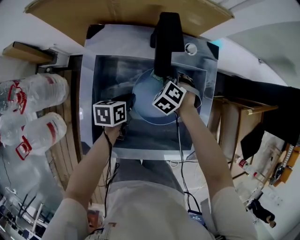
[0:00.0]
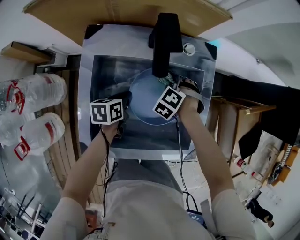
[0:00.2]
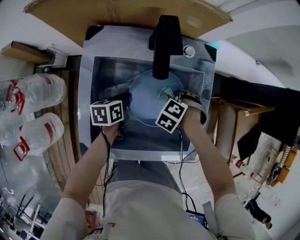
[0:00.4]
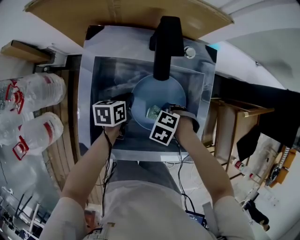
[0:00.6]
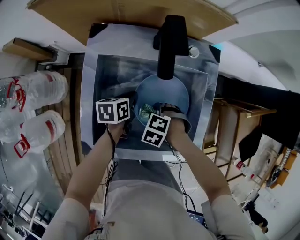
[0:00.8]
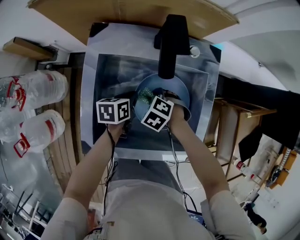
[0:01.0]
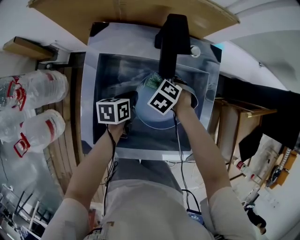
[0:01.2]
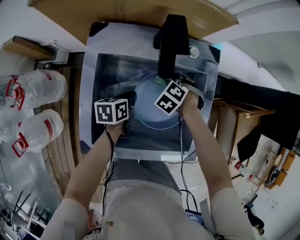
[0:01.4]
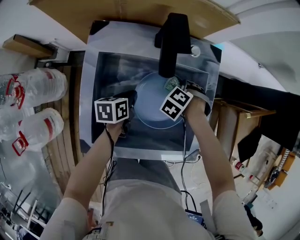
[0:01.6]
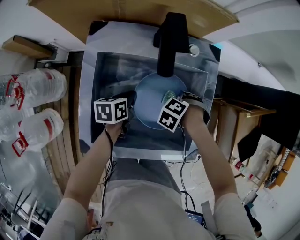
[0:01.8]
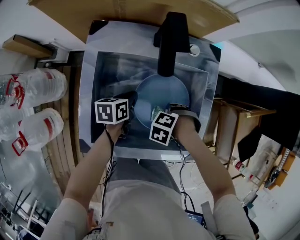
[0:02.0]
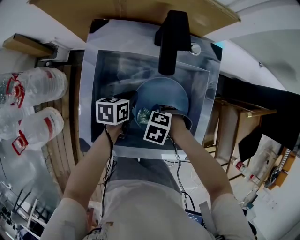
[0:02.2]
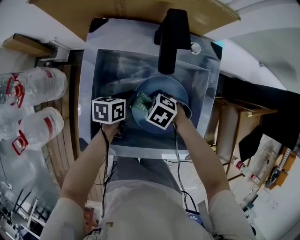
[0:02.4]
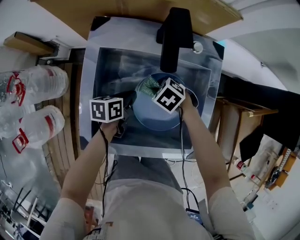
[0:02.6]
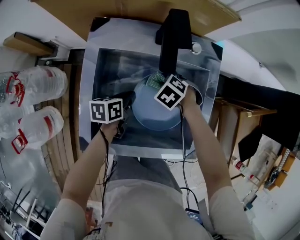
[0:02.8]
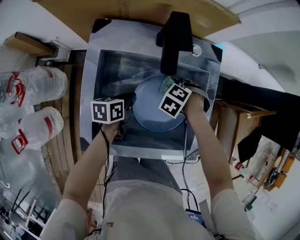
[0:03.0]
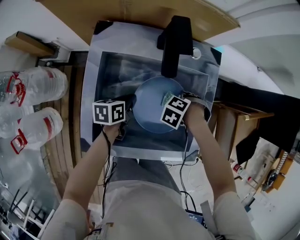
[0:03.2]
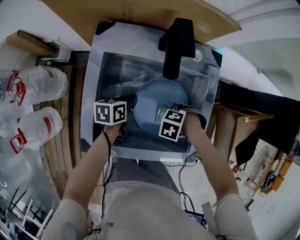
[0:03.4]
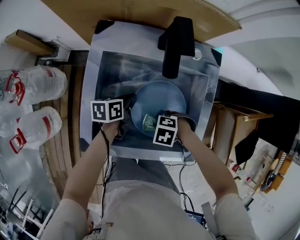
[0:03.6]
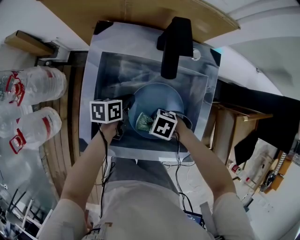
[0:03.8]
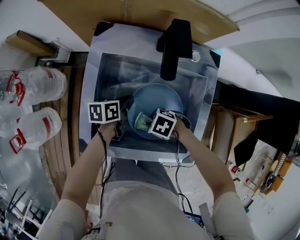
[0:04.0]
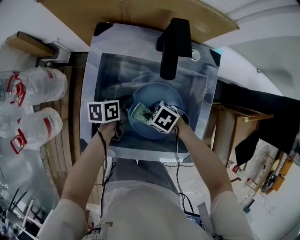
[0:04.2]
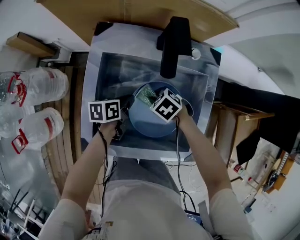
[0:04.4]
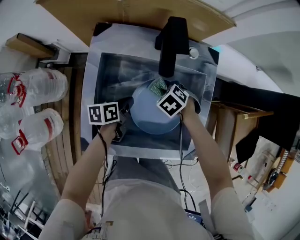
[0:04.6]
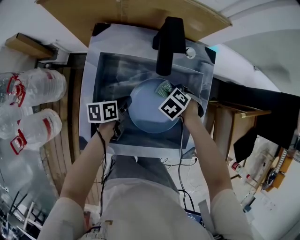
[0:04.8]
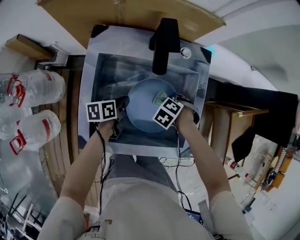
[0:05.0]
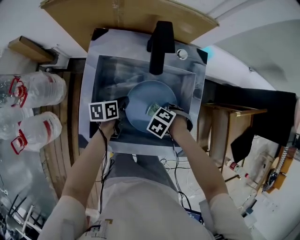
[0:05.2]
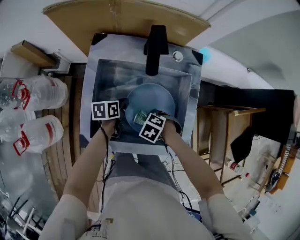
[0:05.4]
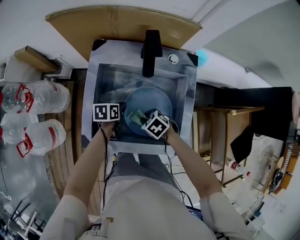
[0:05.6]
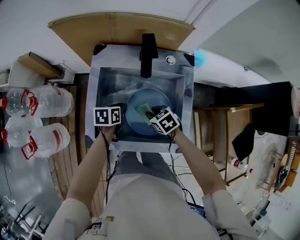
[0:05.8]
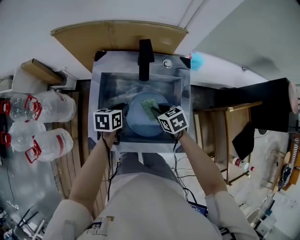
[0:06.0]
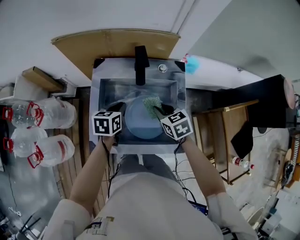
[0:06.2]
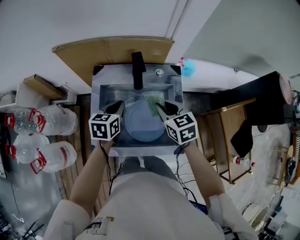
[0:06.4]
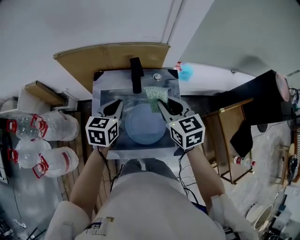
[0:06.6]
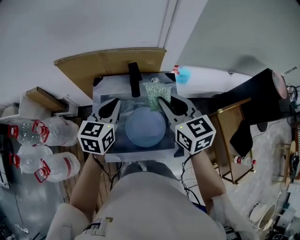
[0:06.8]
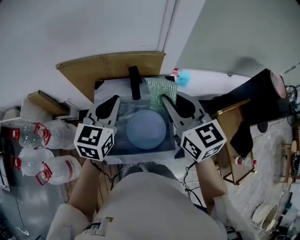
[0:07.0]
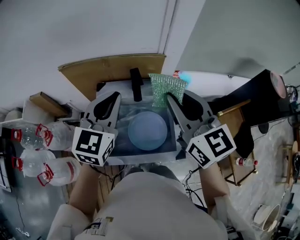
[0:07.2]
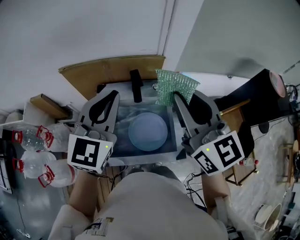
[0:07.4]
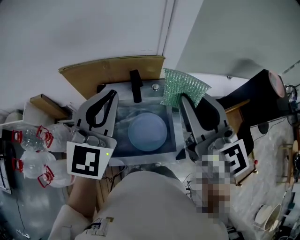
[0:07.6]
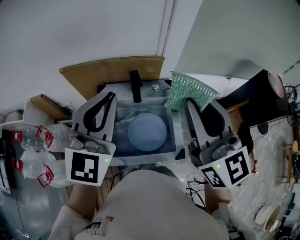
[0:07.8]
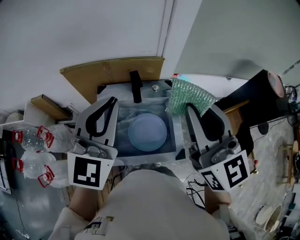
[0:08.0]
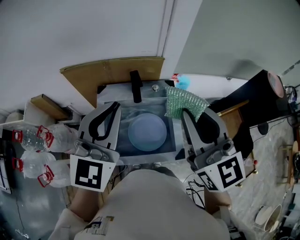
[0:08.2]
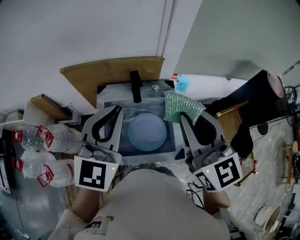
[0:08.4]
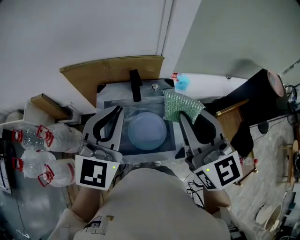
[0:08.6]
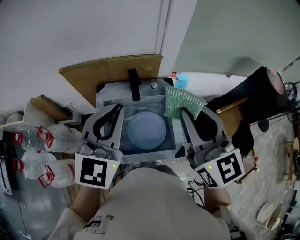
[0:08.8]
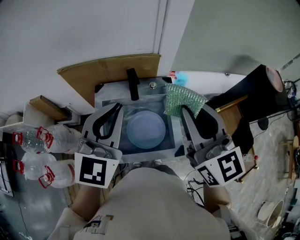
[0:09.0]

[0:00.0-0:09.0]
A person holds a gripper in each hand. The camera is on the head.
0:03.0 to 0:04.4: The right gripper changes its angle by some 30 degrees.
0:04.4 to 0:06.0: Both grippers travel together upward, approximately 10 cm. The left gripper rotates approximately 20 degrees. The right gripper changes its angle by about 40 degrees.
0:06.0 to 0:07.6: Both grippers move upward, some 50 cm. The left gripper angles its fingers upward, by some 40 degrees. Meanwhile the right gripper points its fingers about 60 degrees further upward.
0:07.6 to 0:09.0: The left gripper ends up about 5 cm from where it was.

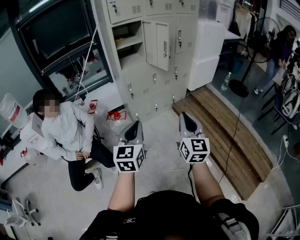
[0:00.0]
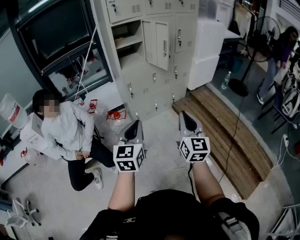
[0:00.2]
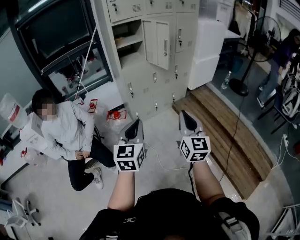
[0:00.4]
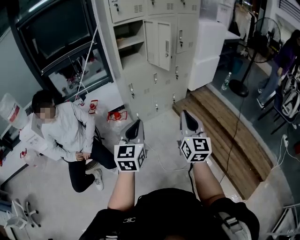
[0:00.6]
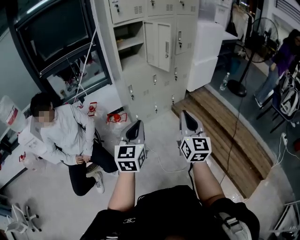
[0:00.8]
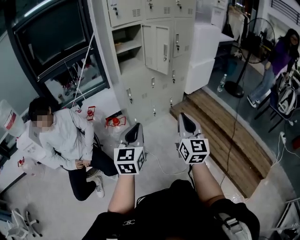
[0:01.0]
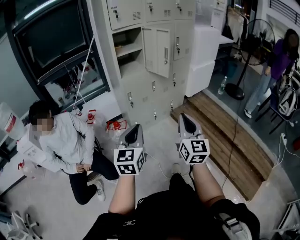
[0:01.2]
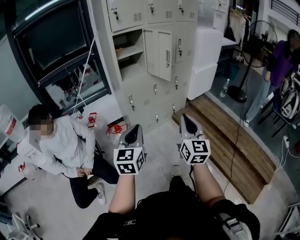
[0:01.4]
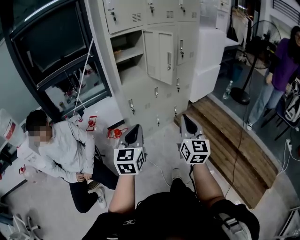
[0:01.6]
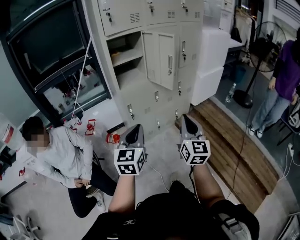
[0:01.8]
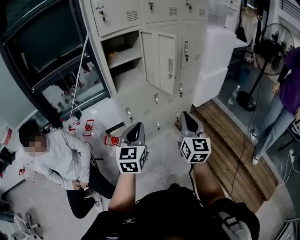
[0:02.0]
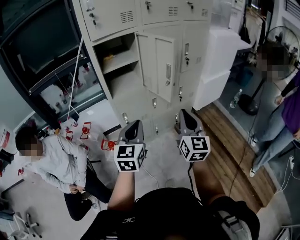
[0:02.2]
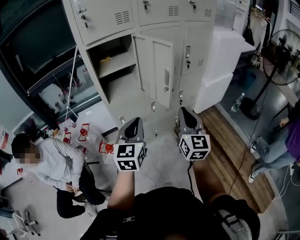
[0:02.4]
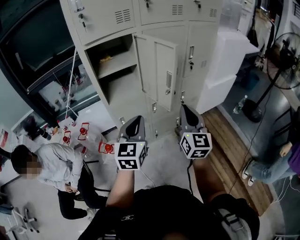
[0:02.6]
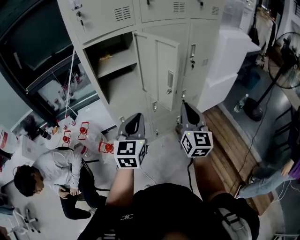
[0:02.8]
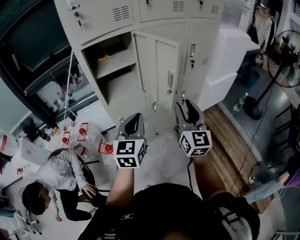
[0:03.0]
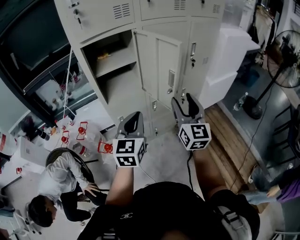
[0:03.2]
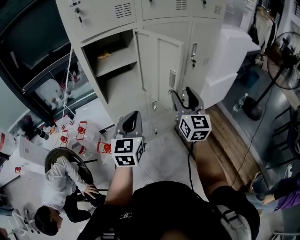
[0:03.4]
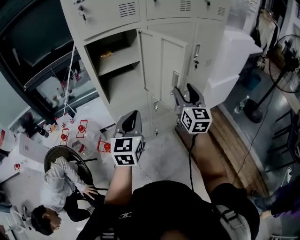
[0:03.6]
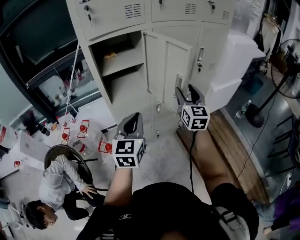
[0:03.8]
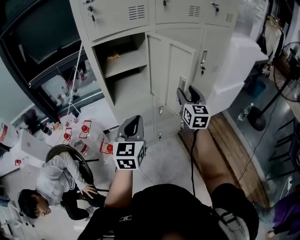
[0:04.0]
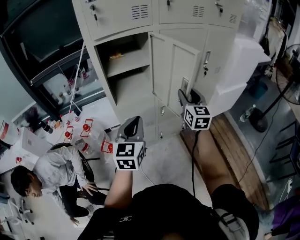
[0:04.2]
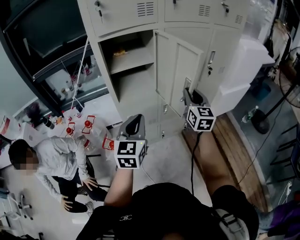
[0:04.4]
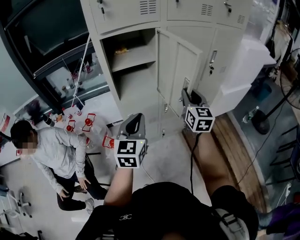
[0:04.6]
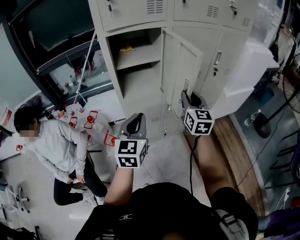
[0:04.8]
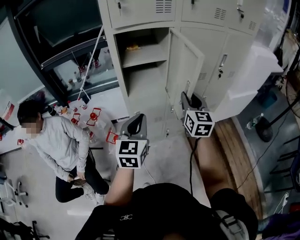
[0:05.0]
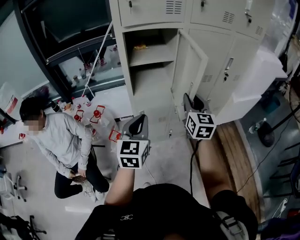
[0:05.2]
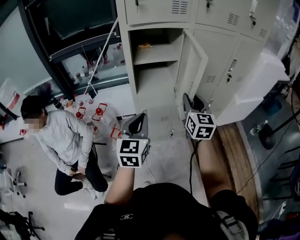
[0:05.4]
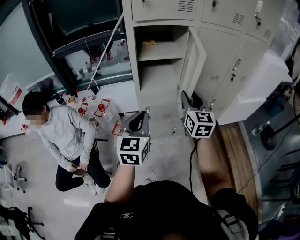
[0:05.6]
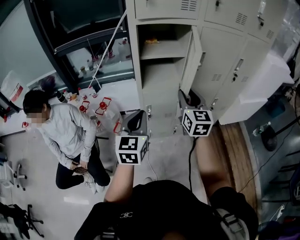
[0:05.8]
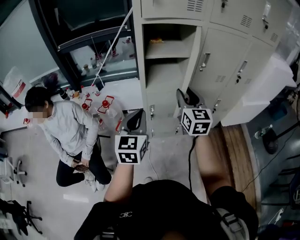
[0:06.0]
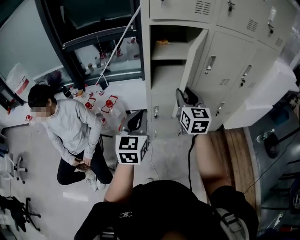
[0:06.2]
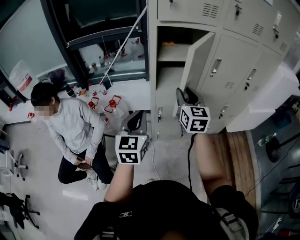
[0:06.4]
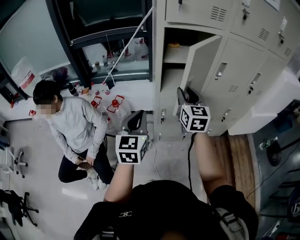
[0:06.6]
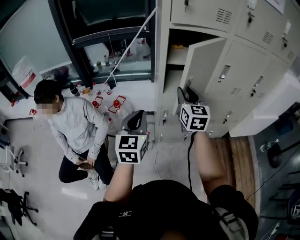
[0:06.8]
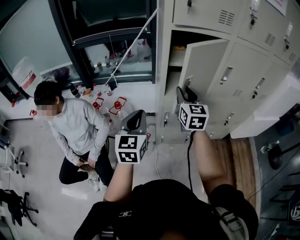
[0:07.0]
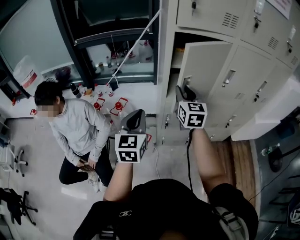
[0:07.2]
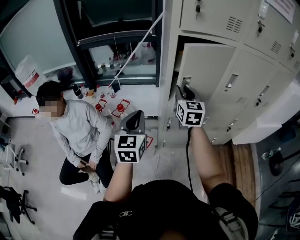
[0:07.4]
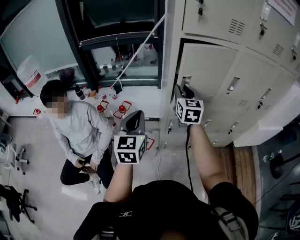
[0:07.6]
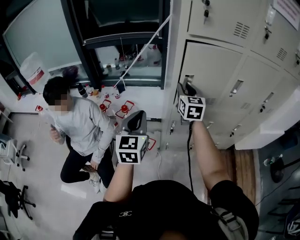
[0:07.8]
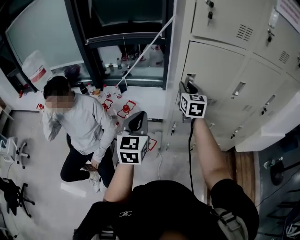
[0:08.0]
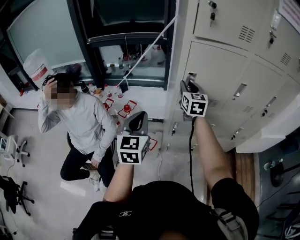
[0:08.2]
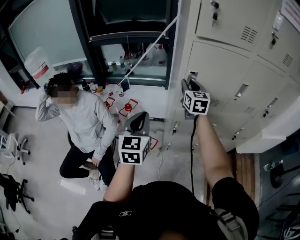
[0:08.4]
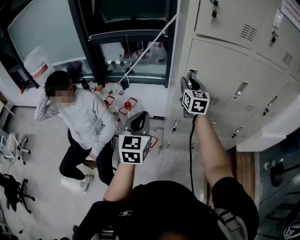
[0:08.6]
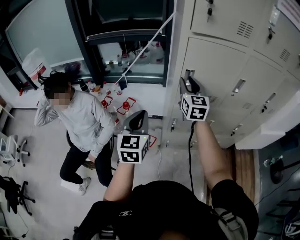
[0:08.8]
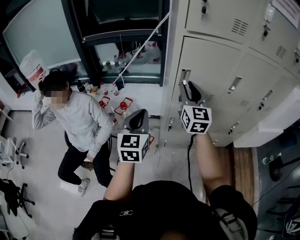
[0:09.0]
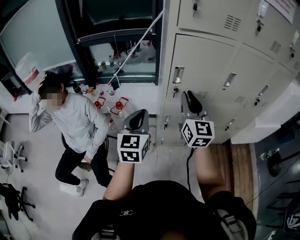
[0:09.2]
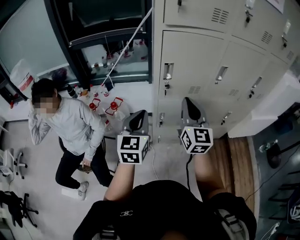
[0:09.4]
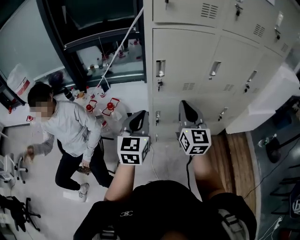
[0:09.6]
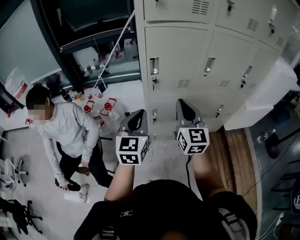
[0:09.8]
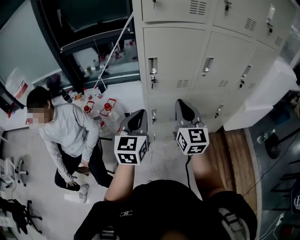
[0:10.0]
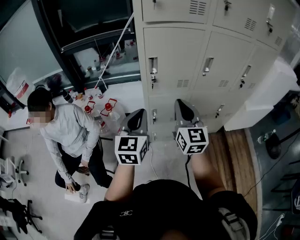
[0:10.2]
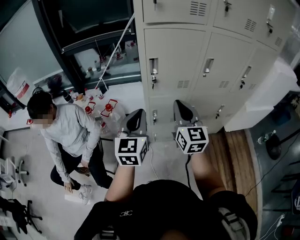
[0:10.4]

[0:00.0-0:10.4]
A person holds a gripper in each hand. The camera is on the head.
0:00.0 to 0:01.4: The grippers both shift forward by about 5 cm.
0:01.4 to 0:03.0: The two grippers travel together, forward, roughly 40 cm. The right gripper opens its fingers.
0:03.0 to 0:04.4: The left gripper moves to the left, roughly 5 cm; the right gripper heads forward, covering about 15 cm, and opens, then closes once more.
0:04.4 to 0:06.0: The right gripper shifts about 20 cm to the left. Meanwhile the left gripper is displaced to the left by some 10 cm.
0:06.0 to 0:07.4: Both grippers travel together to the left and forward, about 15 cm.
0:07.4 to 0:09.0: The right gripper reaches about 5 cm forward, then returns.
0:09.0 to 0:10.4: The left gripper heads to the right, covering approximately 10 cm; the right gripper is displaced backward and to the right by roughly 15 cm, and closes its fingers.

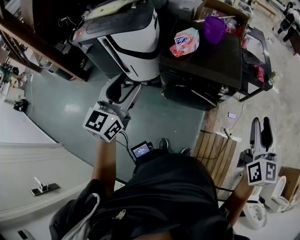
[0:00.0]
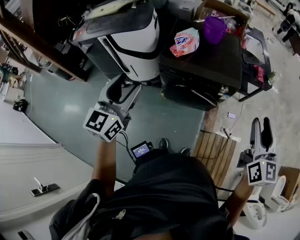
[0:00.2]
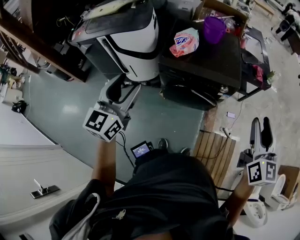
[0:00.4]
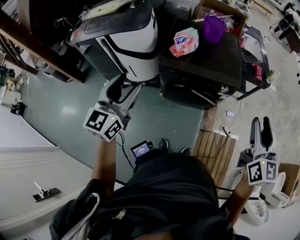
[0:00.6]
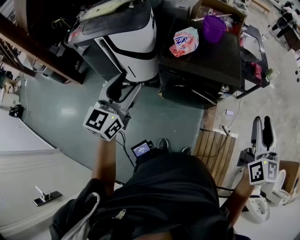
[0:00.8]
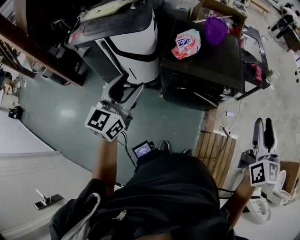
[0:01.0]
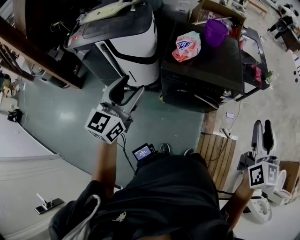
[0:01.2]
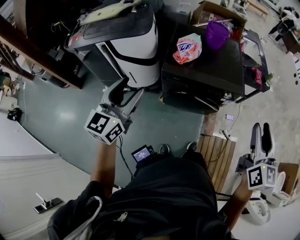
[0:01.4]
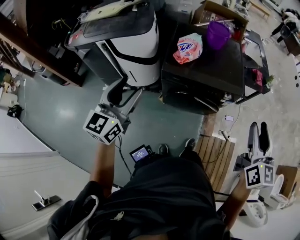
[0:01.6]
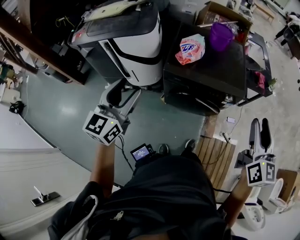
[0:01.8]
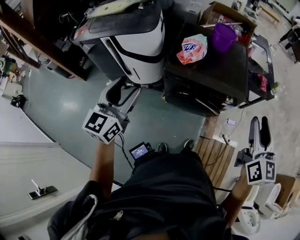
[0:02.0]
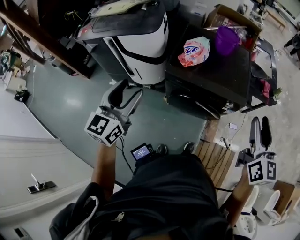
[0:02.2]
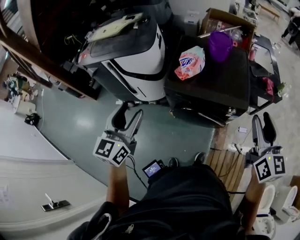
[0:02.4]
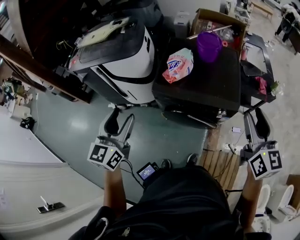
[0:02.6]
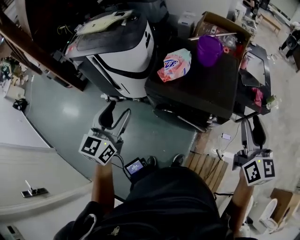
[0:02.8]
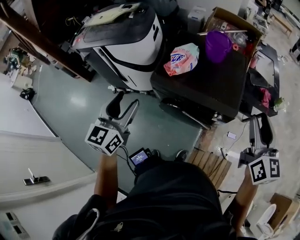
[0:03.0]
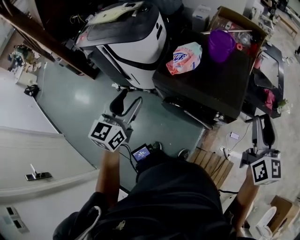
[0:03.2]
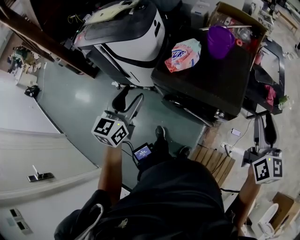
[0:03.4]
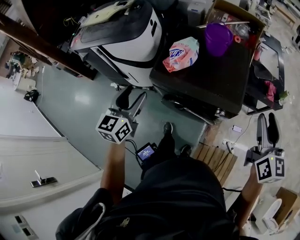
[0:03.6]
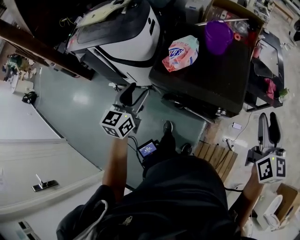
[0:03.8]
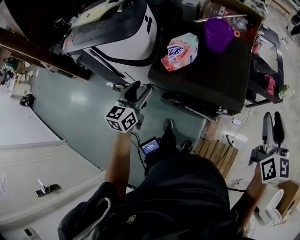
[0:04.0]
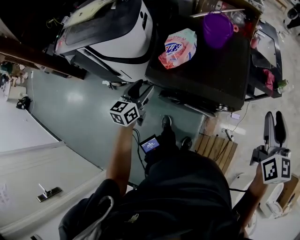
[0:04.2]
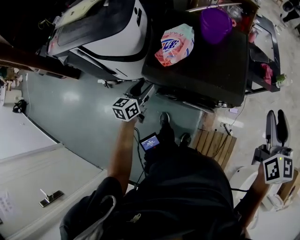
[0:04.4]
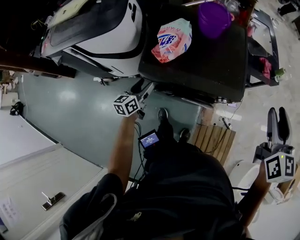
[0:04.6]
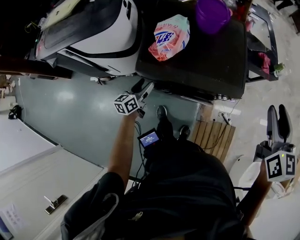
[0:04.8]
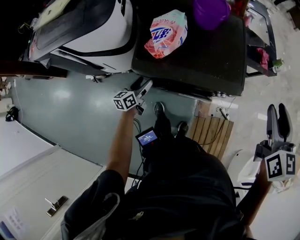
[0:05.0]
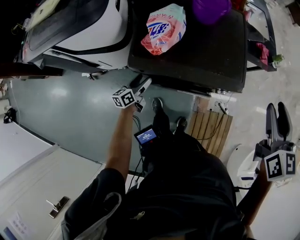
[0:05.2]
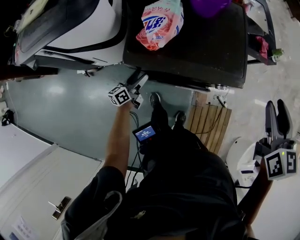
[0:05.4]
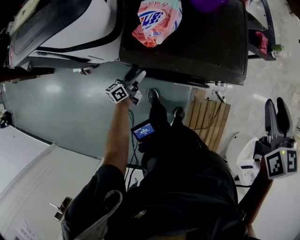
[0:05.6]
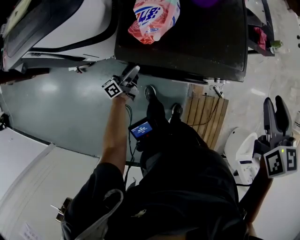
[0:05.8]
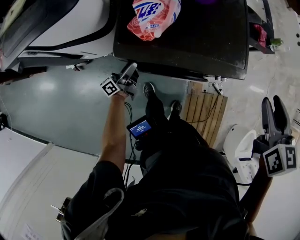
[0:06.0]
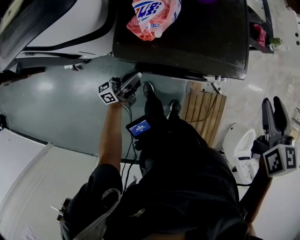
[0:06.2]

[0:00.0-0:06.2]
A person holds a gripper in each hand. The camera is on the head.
0:00.0 to 0:01.6: Both grippers move to the left, roughly 5 cm.
0:01.6 to 0:03.2: The left gripper goes roughly 15 cm to the right and forward. The right gripper heads forward and to the right, covering roughly 25 cm.
0:03.2 to 0:04.6: The left gripper shifts roughly 35 cm downward and forward, and swivels roughly 30 degrees.
0:04.6 to 0:06.2: The right gripper shifts approximately 10 cm downward, while the left gripper travels downward by some 5 cm, tips its fingers upward by about 40 degrees, and closes its fingers.
